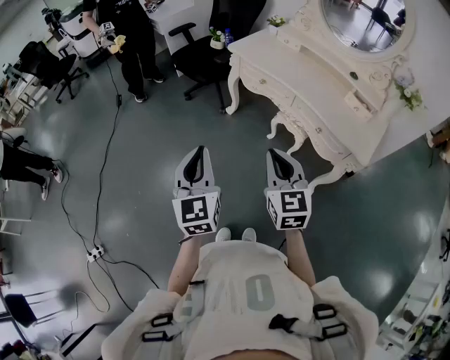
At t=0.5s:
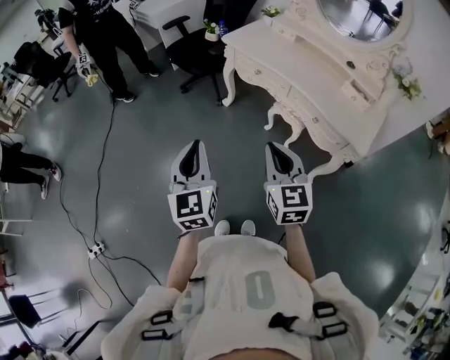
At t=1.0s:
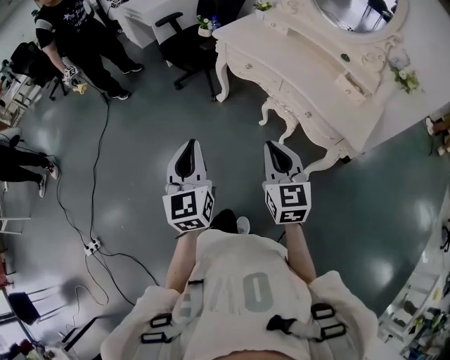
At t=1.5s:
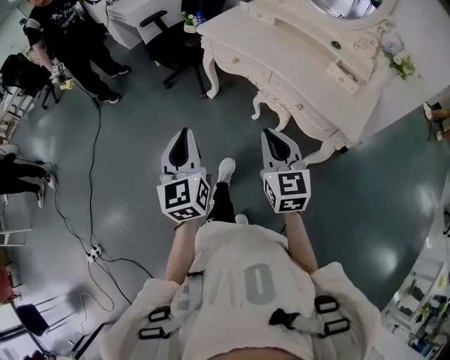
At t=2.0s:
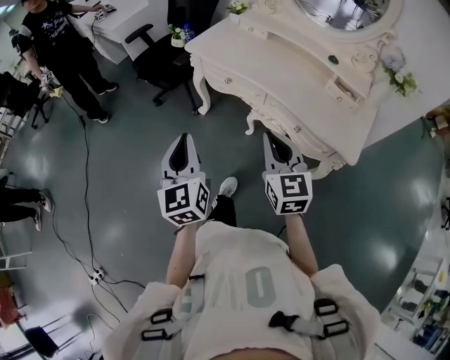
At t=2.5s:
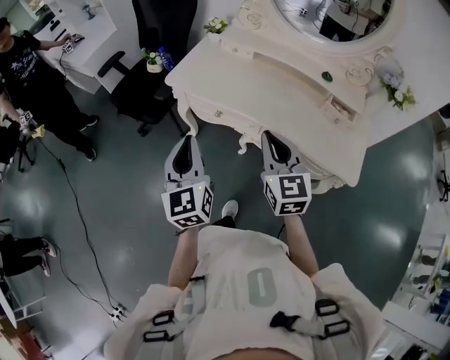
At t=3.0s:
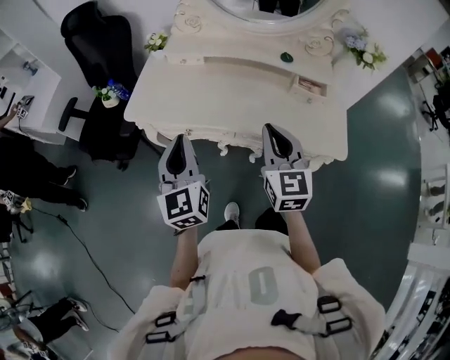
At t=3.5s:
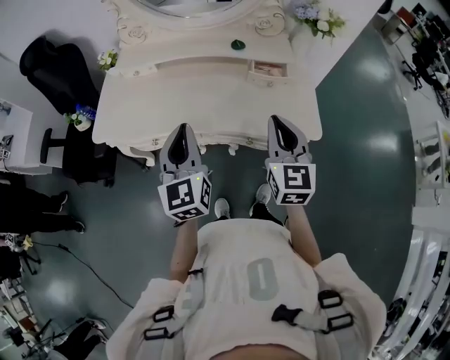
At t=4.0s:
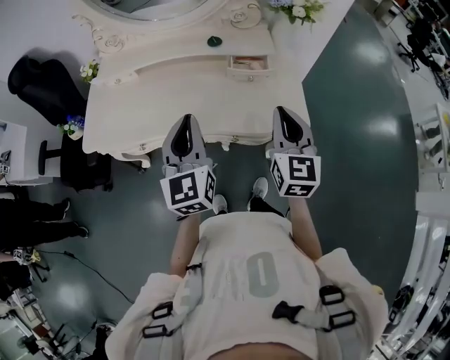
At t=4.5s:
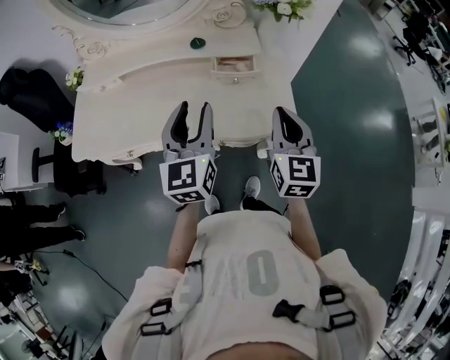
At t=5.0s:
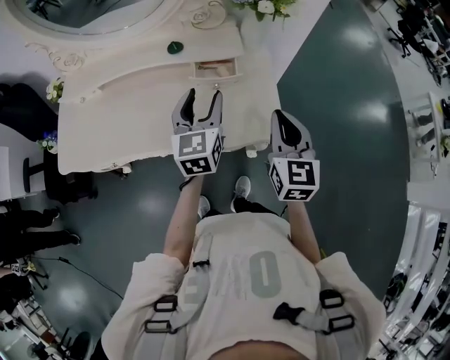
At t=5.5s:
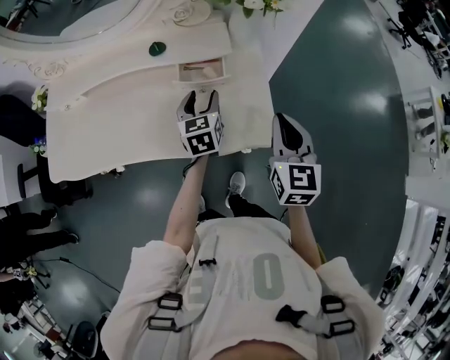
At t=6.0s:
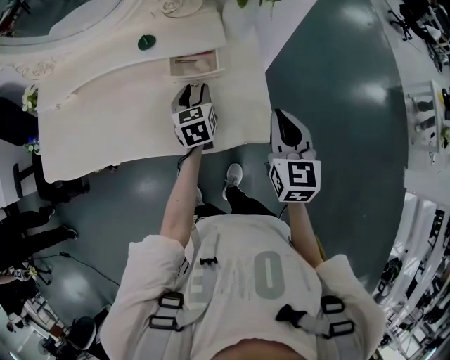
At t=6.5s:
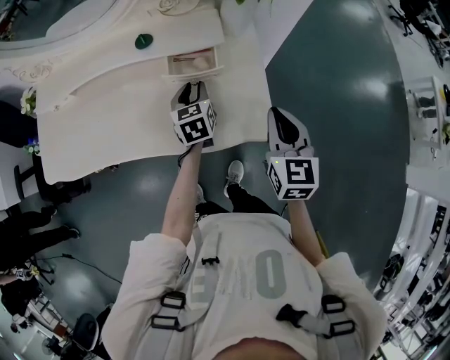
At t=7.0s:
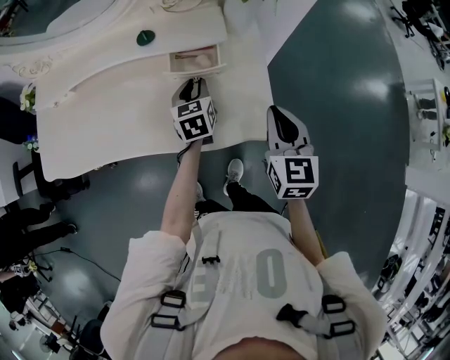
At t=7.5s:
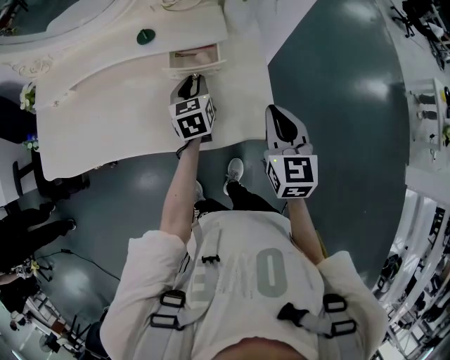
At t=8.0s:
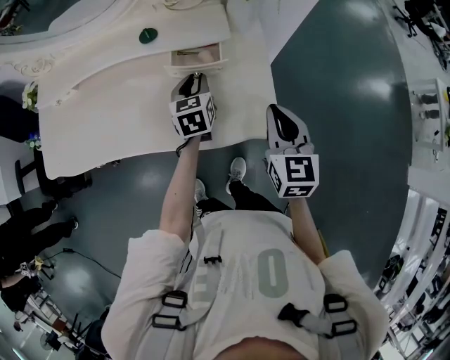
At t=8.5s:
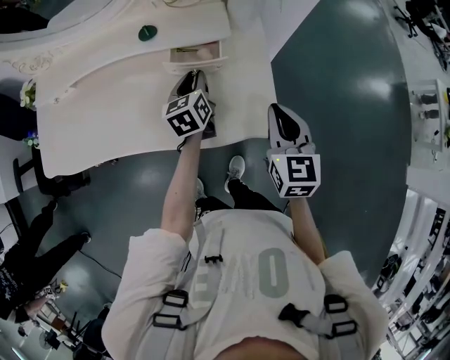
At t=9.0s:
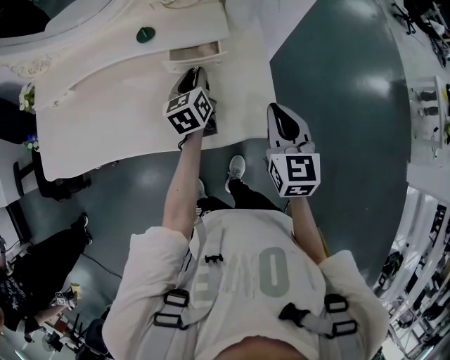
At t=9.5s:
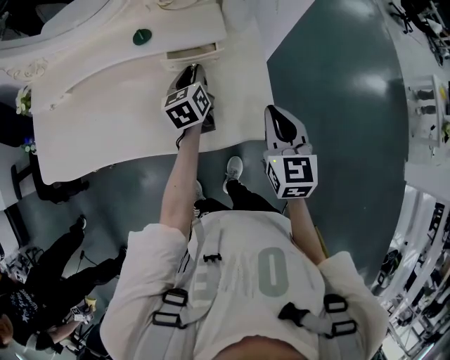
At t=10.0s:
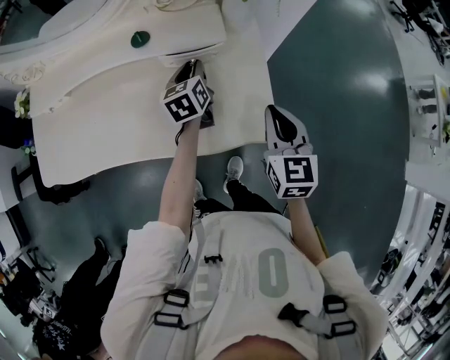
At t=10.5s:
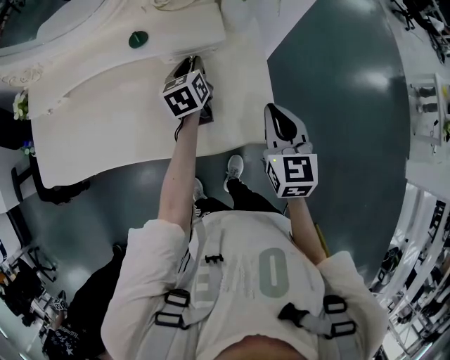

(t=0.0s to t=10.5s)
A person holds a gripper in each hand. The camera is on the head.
t=0.0s - t=2.0s: The grippers both shift forward and to the right by approximately 20 cm.
t=2.0s - t=4.0s: The left gripper shifts by about 40 cm, and swivels about 40 degrees. The right gripper shifts by approximately 30 cm, and changes its angle by about 50 degrees.
t=4.0s - t=6.5s: The right gripper shifts roughly 20 cm to the right, downward and forward. The left gripper travels downward, forward and to the right by about 40 cm, angles its fingers downward, by roughly 30 degrees, and opens its fingers.
t=6.5s - t=8.5s: There are only small adjustments of the grippers.
t=8.5s - t=10.5s: The left gripper shifts approximately 5 cm forward.

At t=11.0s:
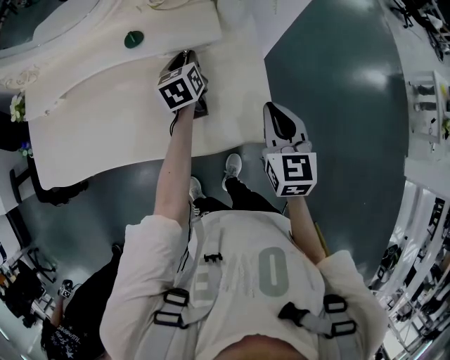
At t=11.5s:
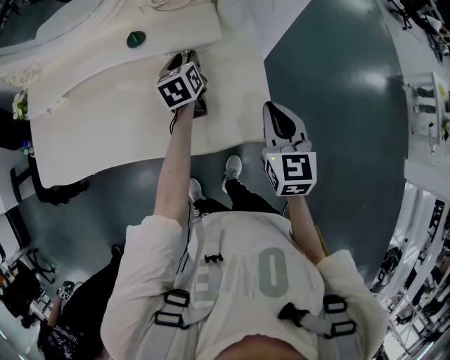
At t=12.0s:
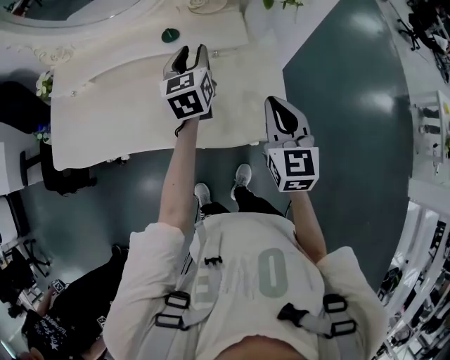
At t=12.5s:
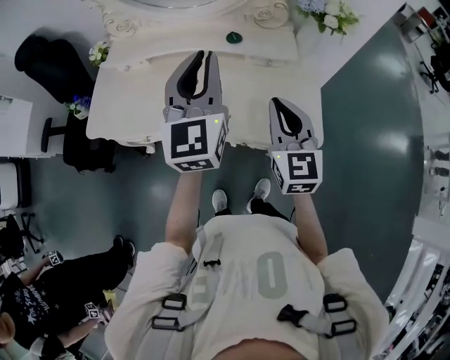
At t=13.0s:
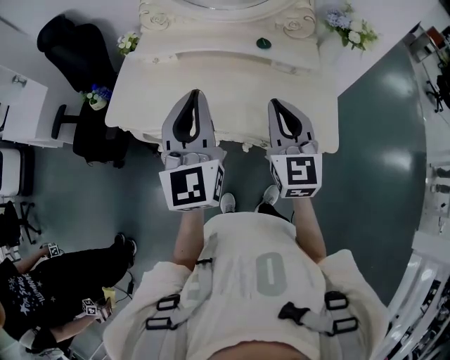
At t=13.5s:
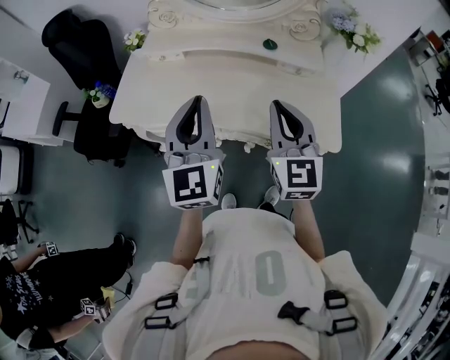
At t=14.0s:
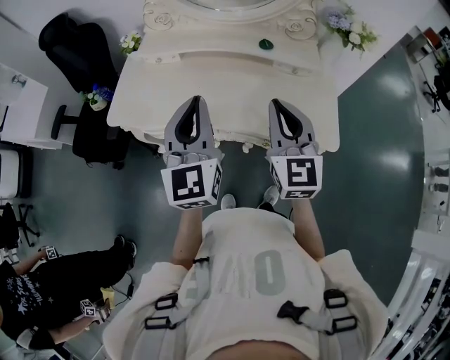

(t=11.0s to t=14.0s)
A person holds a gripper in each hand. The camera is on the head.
t=11.0s - t=12.5s: The right gripper heads to the left and upward, covering about 25 cm, and swivels roughly 20 degrees. Meanwhile the left gripper is displaced upward, backward and to the left by roughly 40 cm, and points its fingers some 40 degrees further upward.
t=12.5s - t=14.0s: The left gripper moves to the left and backward, some 15 cm, while the right gripper heads to the left, covering roughly 10 cm.

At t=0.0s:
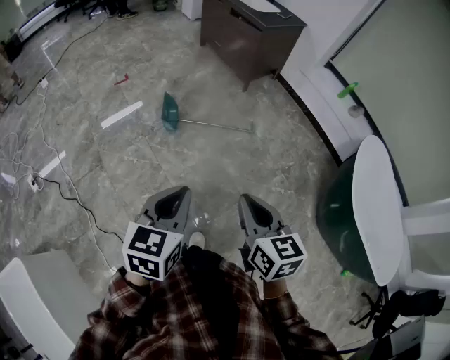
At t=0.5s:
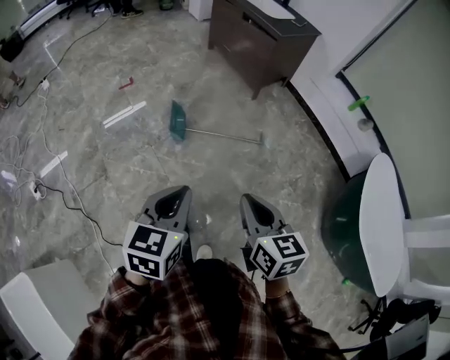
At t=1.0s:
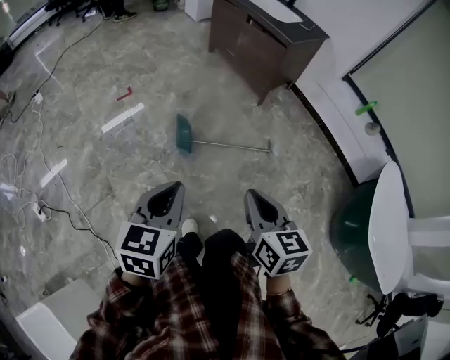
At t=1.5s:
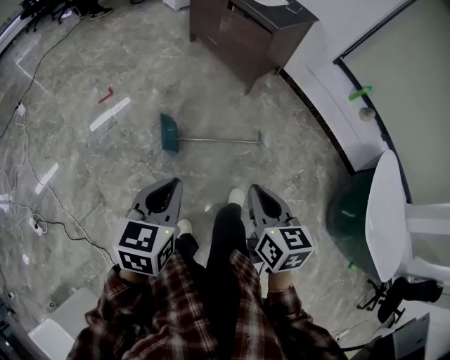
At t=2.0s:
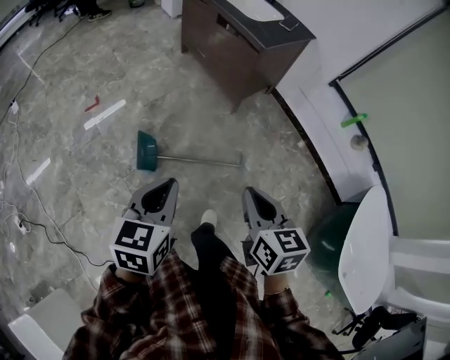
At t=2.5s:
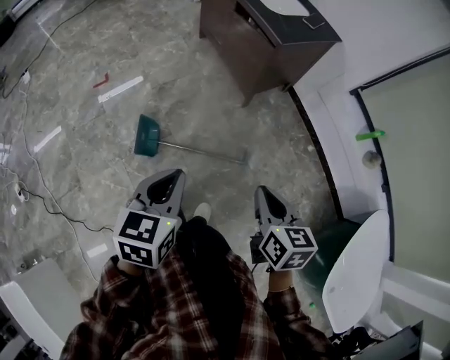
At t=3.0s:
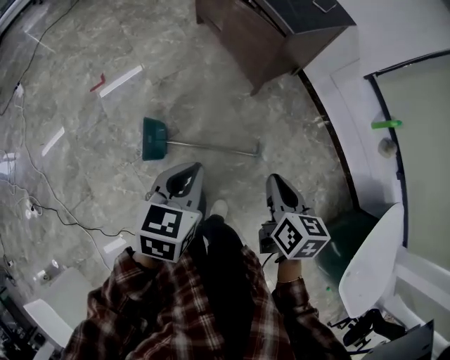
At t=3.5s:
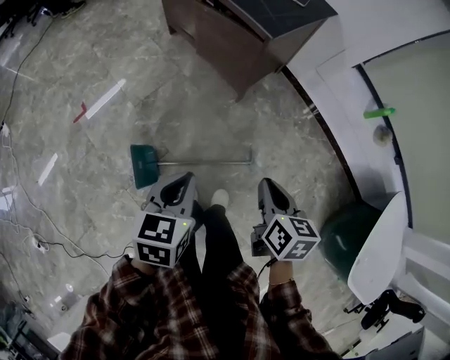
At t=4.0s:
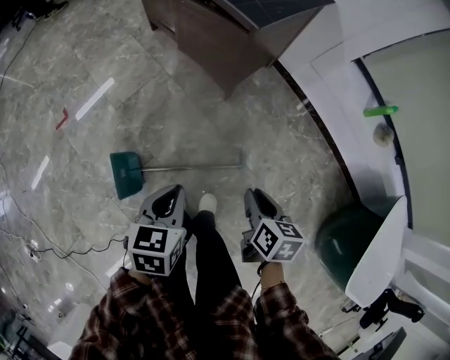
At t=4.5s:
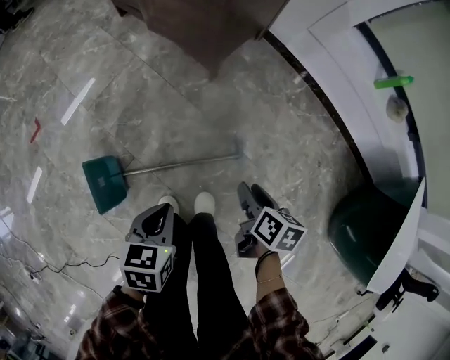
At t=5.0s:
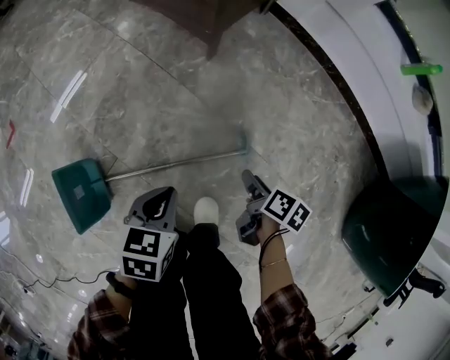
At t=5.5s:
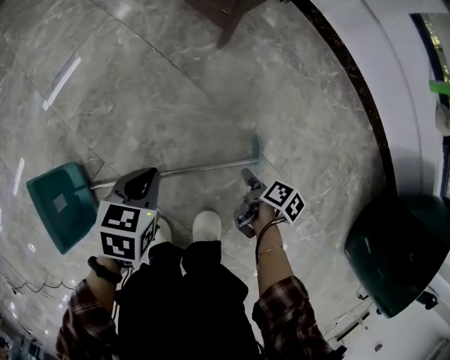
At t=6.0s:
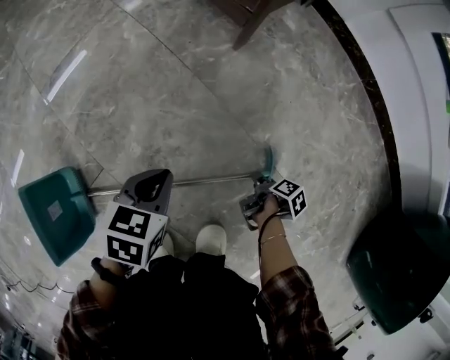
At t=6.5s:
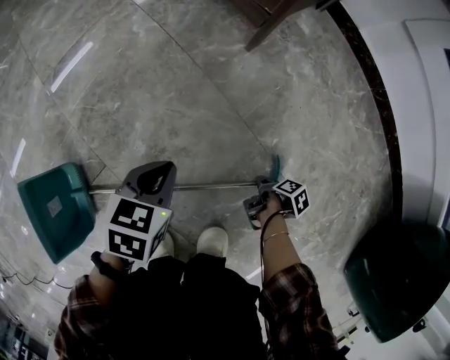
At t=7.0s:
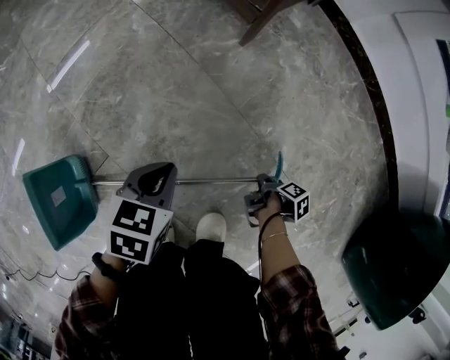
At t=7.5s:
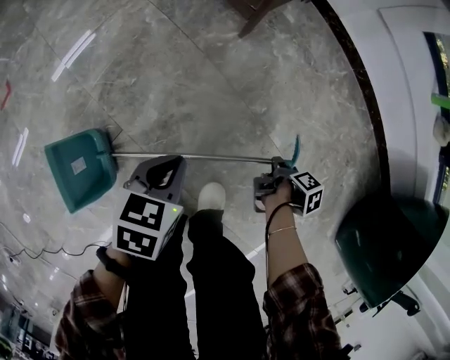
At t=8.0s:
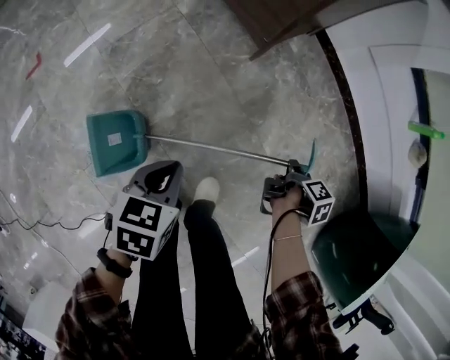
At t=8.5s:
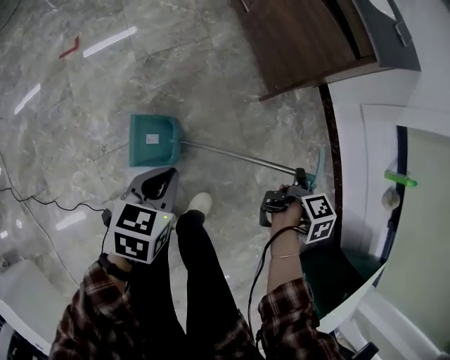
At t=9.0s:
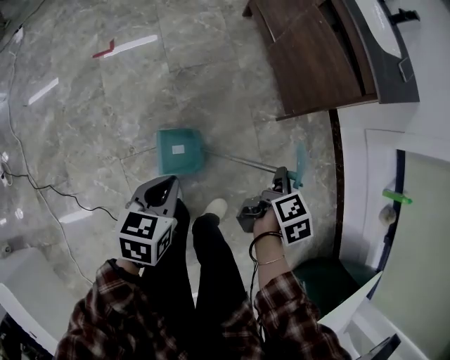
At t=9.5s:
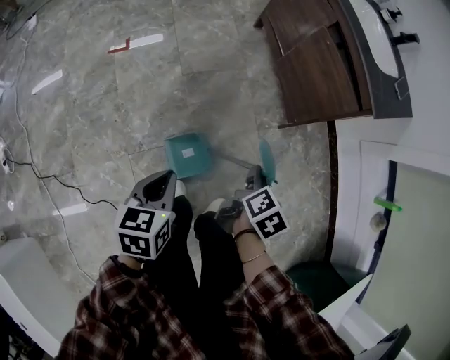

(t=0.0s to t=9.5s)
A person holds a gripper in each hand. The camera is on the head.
t=0.0s - t=2.0s: The two grippers travel together, forward, about 50 cm.
t=2.0s - t=4.0s: The right gripper heads downward, forward and to the right, covering about 35 cm, and rotates about 30 degrees; the left gripper heads forward and downward, covering roughly 35 cm.
t=4.0s - t=5.5s: The grippers both shift downward by roughly 50 cm. The right gripper twists some 40 degrees clockwise, seen from behind, and opens up.
t=5.5s - t=7.5s: Both grippers move upward, roughly 10 cm. The right gripper rotates roughly 30 degrees, and closes up.
t=7.5s - t=9.5s: The two grippers go approximately 40 cm upward. The right gripper rotates around the line of its fingers by about 60 degrees, counterclockwise from behind, while the left gripper rotates some 40 degrees.

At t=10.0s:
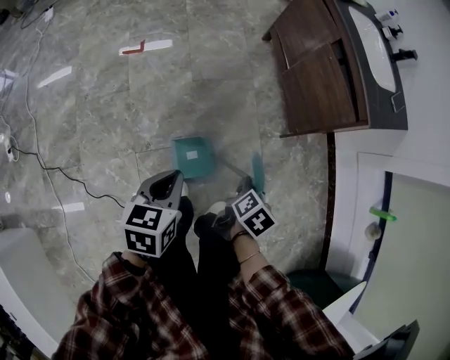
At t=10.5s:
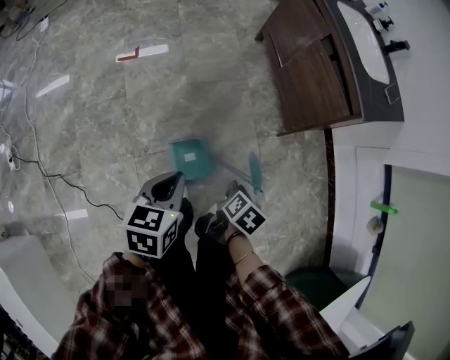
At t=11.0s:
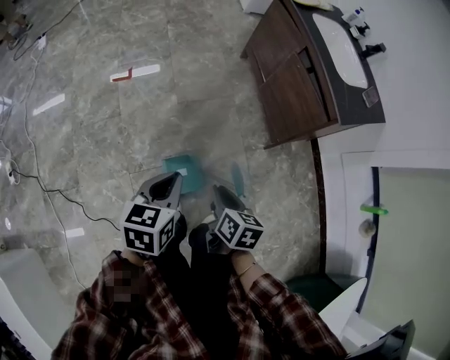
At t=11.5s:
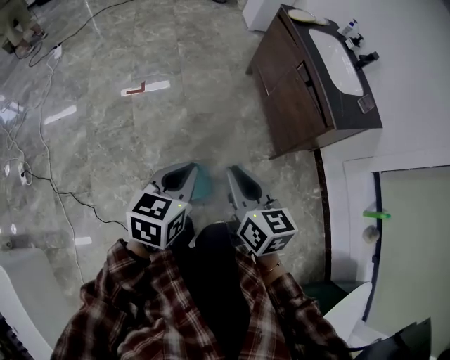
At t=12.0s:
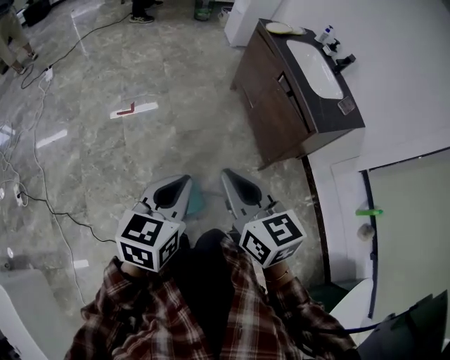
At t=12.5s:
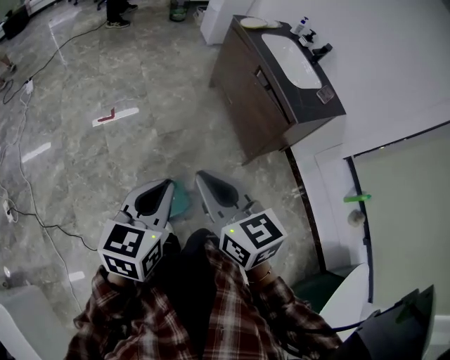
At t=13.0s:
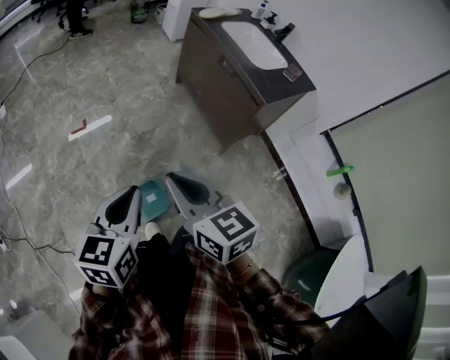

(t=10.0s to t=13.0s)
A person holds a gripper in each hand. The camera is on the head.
t=10.0s - t=11.5s: The left gripper is displaced upward by about 15 cm; the right gripper travels upward by some 25 cm, and angles its fingers upward, by approximately 30 degrees.
t=11.5s - t=13.0s: The left gripper heads upward and backward, covering about 10 cm. Meanwhile the right gripper is displaced upward by approximately 10 cm.
